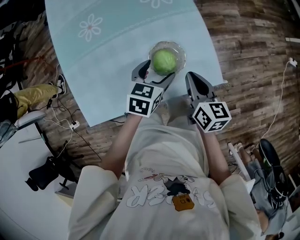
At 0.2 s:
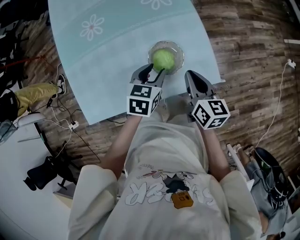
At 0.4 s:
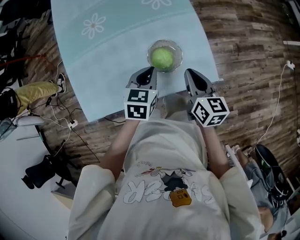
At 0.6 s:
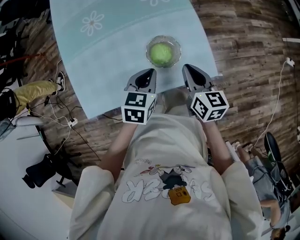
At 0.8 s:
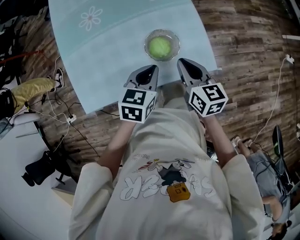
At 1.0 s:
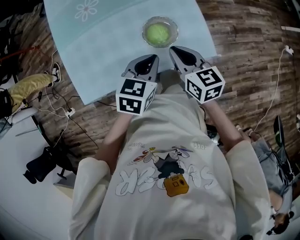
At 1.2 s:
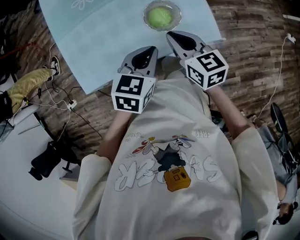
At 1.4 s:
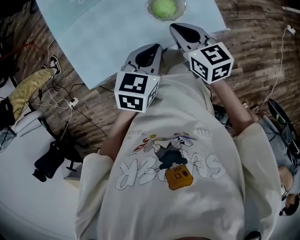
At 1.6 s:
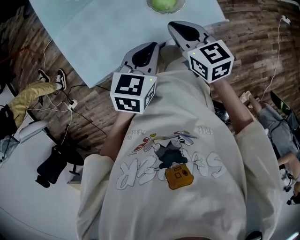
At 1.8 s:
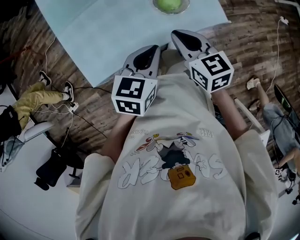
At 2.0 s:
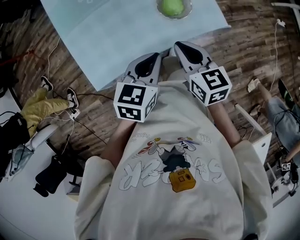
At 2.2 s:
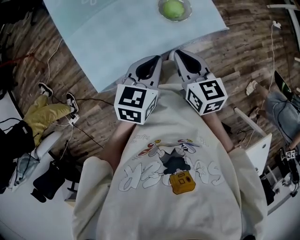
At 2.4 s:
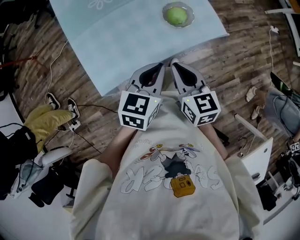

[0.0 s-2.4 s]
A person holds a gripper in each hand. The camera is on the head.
0.0 to 1.2 s: The right gripper shifts by some 10 cm, and rotates about 20 degrees.
1.2 to 2.4 s: The right gripper moves roughly 20 cm.

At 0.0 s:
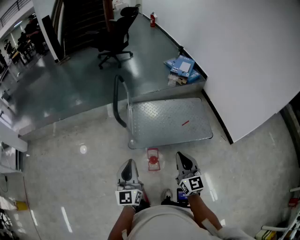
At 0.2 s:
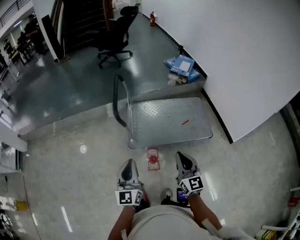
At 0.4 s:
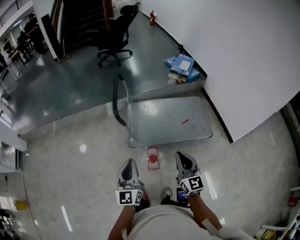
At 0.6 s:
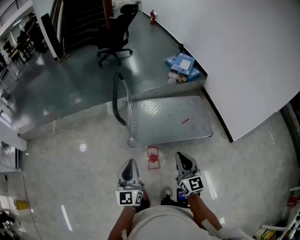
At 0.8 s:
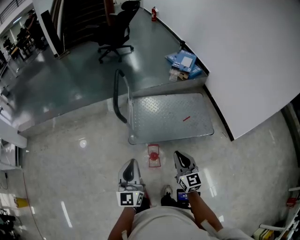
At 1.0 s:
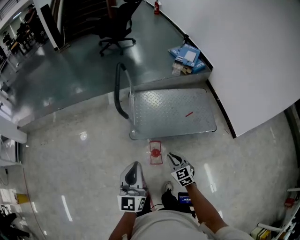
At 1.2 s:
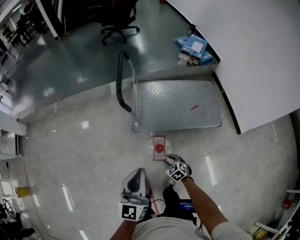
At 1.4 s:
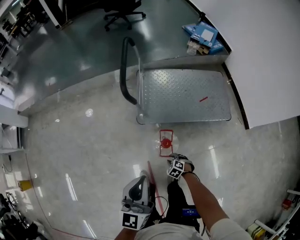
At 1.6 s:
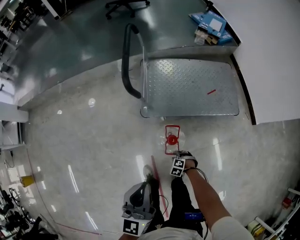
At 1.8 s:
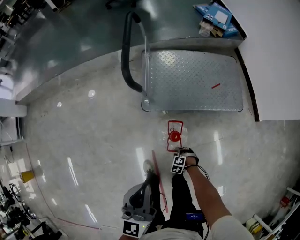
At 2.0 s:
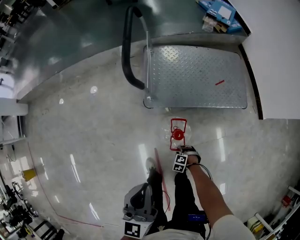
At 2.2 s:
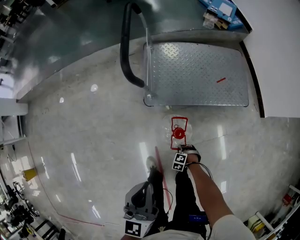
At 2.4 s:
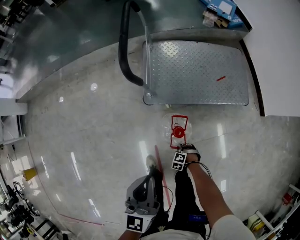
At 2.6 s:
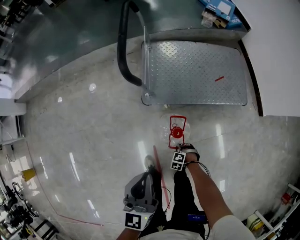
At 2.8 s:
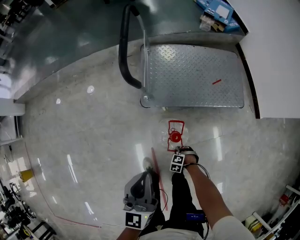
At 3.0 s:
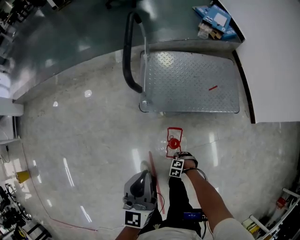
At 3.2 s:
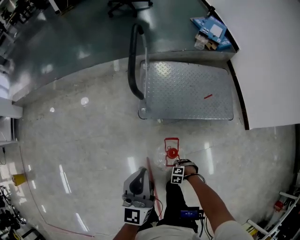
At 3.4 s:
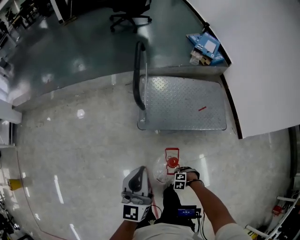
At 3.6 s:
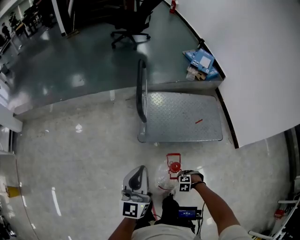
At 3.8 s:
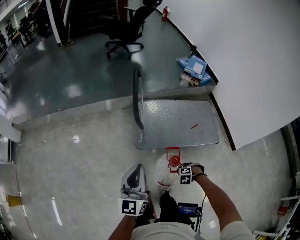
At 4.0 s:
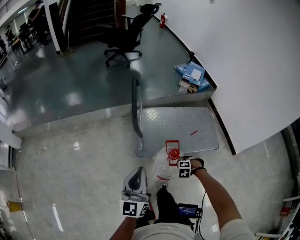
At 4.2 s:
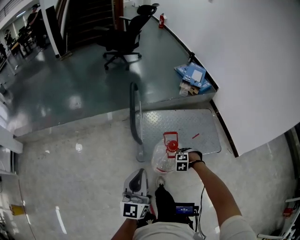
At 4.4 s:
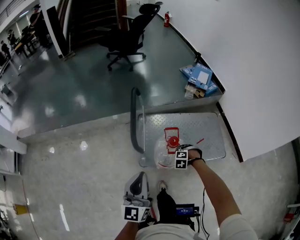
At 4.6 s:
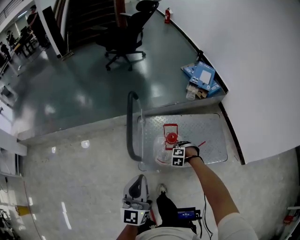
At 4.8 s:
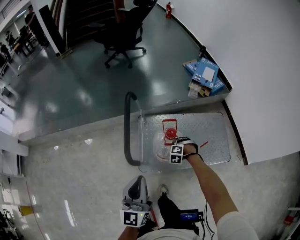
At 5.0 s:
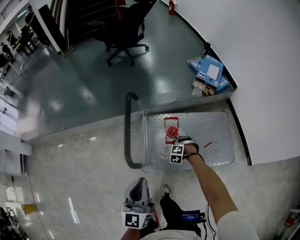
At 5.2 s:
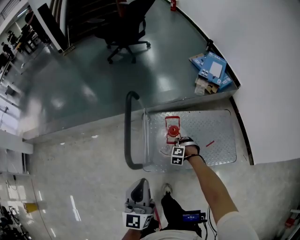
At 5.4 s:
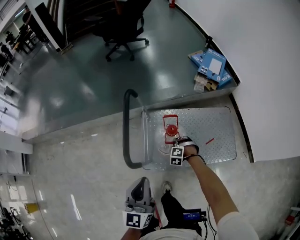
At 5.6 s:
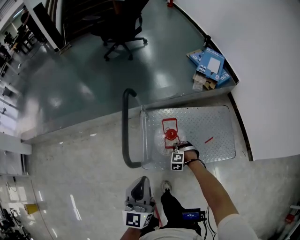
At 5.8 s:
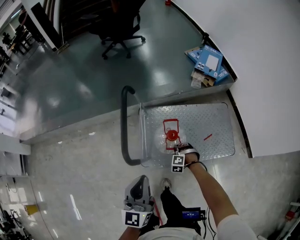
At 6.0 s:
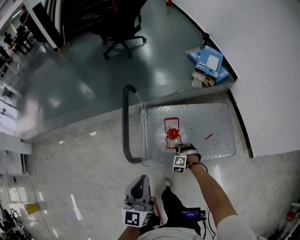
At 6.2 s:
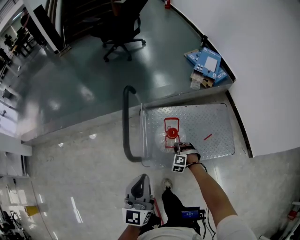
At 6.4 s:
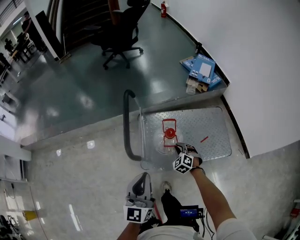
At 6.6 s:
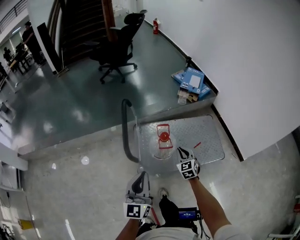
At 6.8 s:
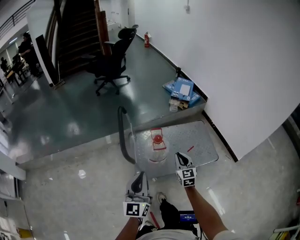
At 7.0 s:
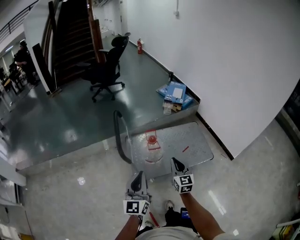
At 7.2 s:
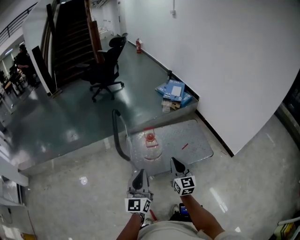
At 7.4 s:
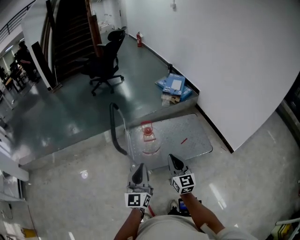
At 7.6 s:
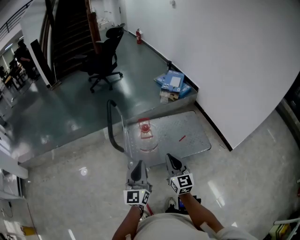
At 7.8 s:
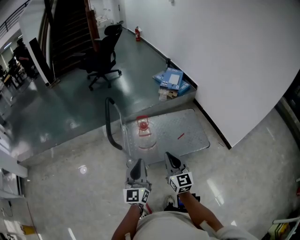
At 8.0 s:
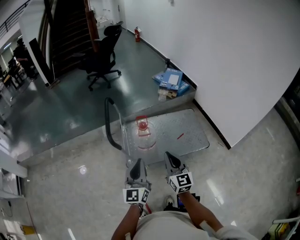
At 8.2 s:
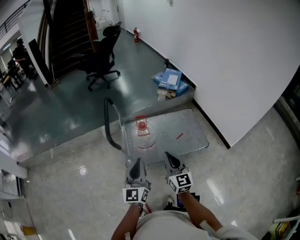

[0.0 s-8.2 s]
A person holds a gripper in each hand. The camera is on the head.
0.0 to 1.6 s: The right gripper travels downward by roughly 50 cm, points its fingers approximately 80 degrees further downward, and opens up, while the left gripper shifts roughly 5 cm downward.
1.6 to 3.2 s: The left gripper goes downward and returns, some 10 cm each way. The right gripper reaches about 10 cm downward, then returns.
3.2 to 5.0 s: The right gripper shifts by approximately 60 cm, and swivels approximately 30 degrees. Meanwhile the left gripper changes place by roughly 30 cm.
5.0 to 6.6 s: The right gripper moves upward and backward, approximately 25 cm, and rotates around the line of its fingers by about 60 degrees, clockwise from behind. The left gripper goes approximately 10 cm backward.
6.6 to 8.2 s: The right gripper is displaced backward and upward by some 30 cm, and changes its angle by approximately 30 degrees. The left gripper moves to the right and backward, about 15 cm.

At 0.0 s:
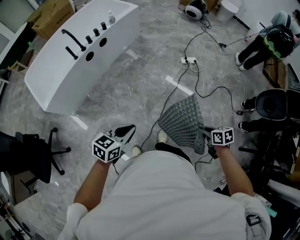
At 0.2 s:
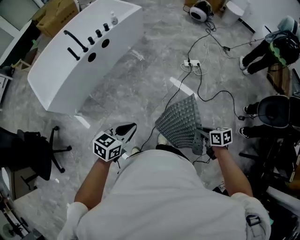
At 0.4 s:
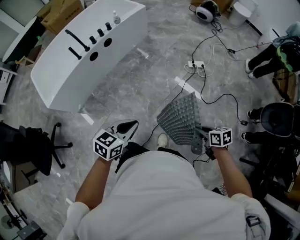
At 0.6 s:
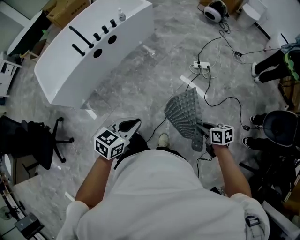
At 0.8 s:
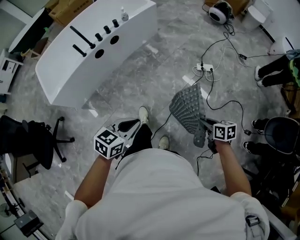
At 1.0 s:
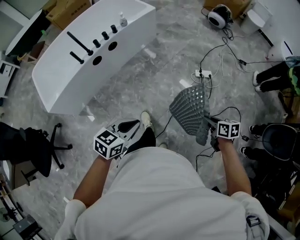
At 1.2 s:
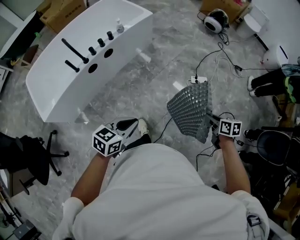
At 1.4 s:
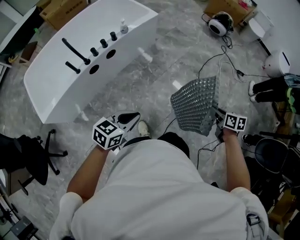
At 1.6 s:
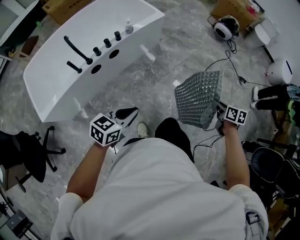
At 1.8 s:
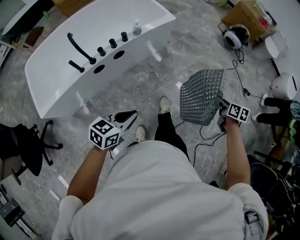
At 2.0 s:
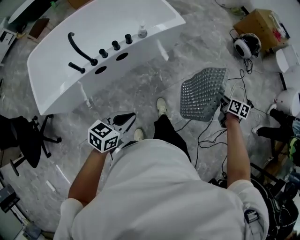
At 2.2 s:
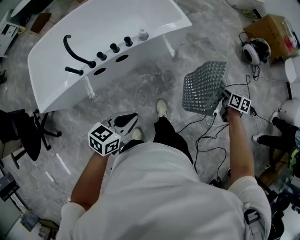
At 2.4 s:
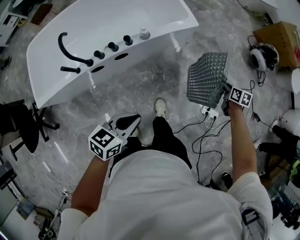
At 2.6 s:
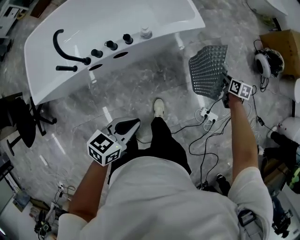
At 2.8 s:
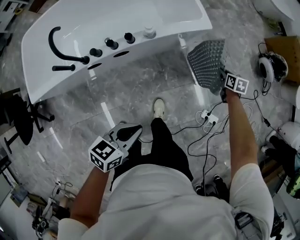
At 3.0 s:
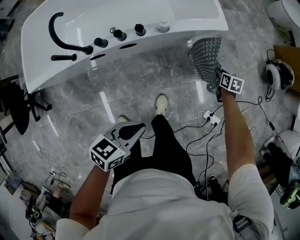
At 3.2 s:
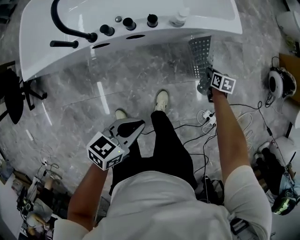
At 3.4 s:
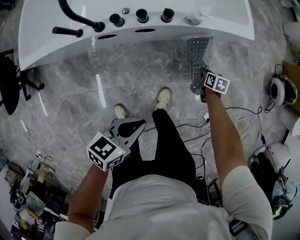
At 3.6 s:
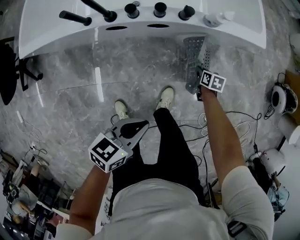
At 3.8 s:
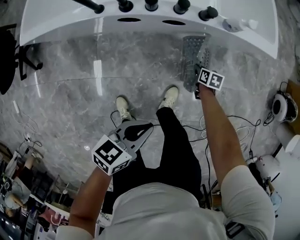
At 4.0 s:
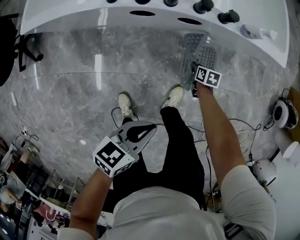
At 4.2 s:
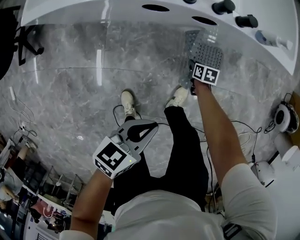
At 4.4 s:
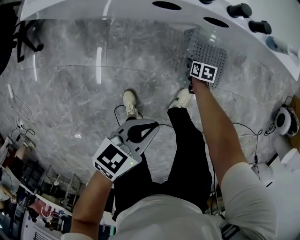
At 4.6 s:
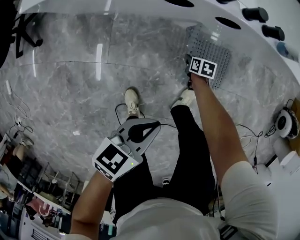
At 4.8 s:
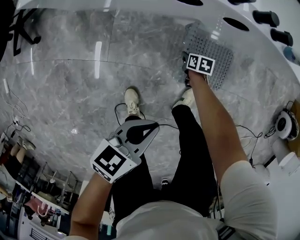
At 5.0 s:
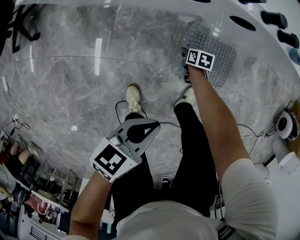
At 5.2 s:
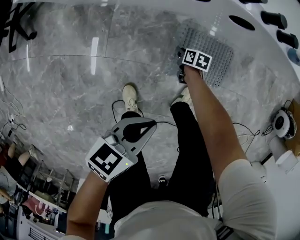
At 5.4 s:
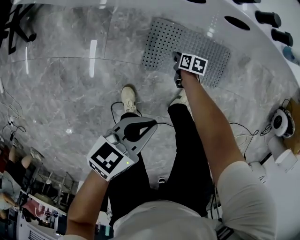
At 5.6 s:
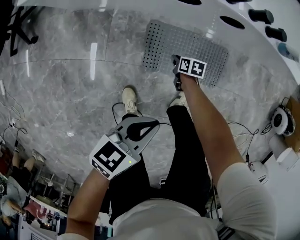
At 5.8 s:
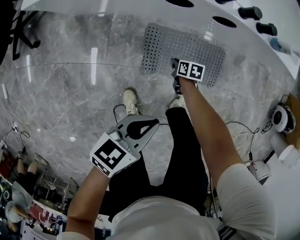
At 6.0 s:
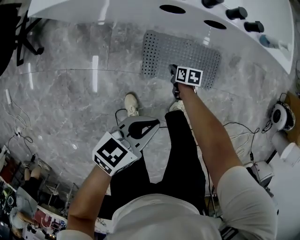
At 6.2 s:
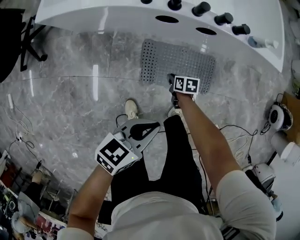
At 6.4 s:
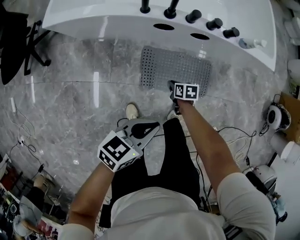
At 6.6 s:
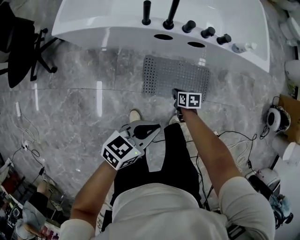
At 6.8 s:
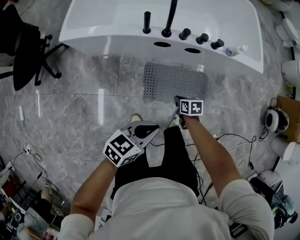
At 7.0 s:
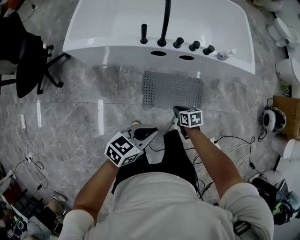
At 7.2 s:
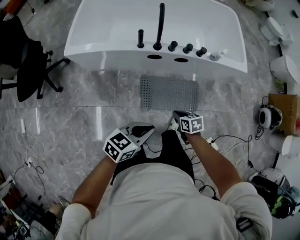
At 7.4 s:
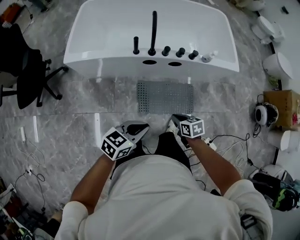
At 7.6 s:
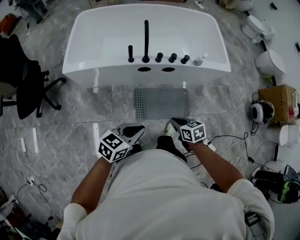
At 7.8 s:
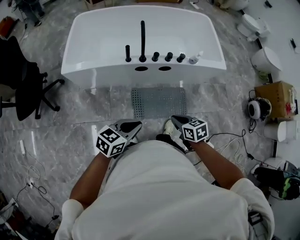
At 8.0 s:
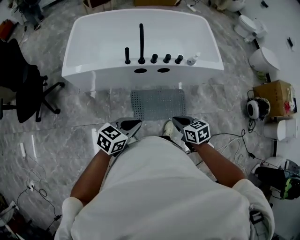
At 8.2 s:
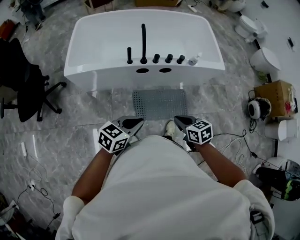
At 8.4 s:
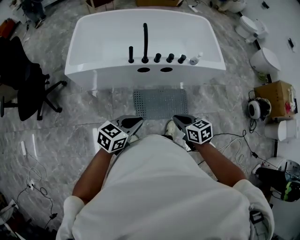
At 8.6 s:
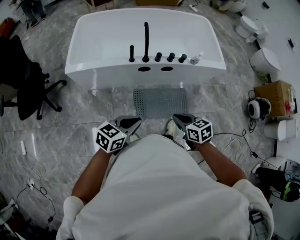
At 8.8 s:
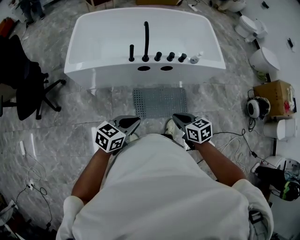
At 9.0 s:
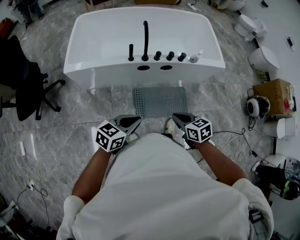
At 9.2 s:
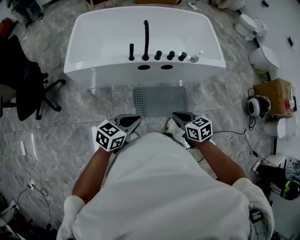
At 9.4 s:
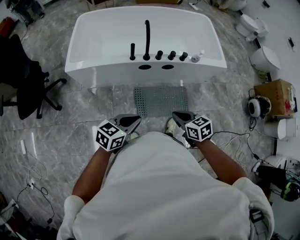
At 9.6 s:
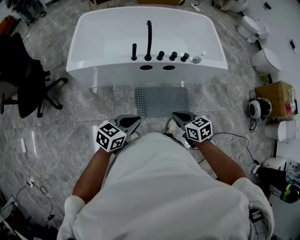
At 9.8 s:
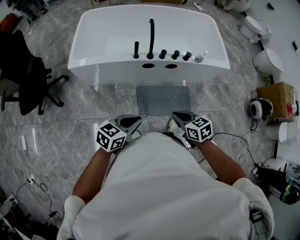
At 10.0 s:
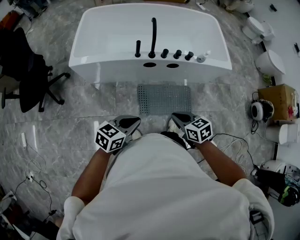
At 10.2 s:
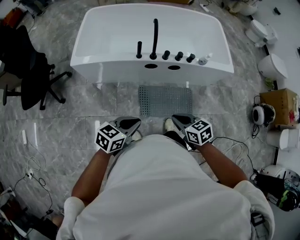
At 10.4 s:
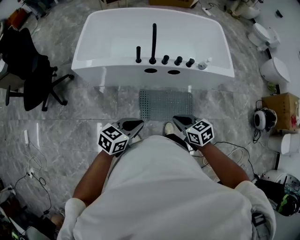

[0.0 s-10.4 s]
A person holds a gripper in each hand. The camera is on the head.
0.0 to 1.4 s: Both grippers move forward, roughly 40 cm.
1.4 to 3.0 s: The right gripper travels forward and downward by some 70 cm, and rotates approximately 30 degrees, while the left gripper shifts about 35 cm forward, and changes its angle by roughly 40 degrees.
3.0 to 4.4 s: The left gripper shifts by roughly 25 cm, and turns by about 20 degrees; the right gripper ends up roughly 50 cm from where it was, and changes its angle by about 30 degrees.
4.4 to 6.0 s: The right gripper travels to the left and backward by about 10 cm. Meanwhile the left gripper travels downward and back again, roughly 5 cm each way.
6.0 to 7.4 s: The right gripper moves upward, roughly 35 cm. The left gripper goes some 20 cm upward.
7.4 to 9.0 s: The right gripper goes about 15 cm upward; the left gripper ends up about 5 cm from where it was.
9.0 to 10.4 s: There are only small adjustments of the grippers.

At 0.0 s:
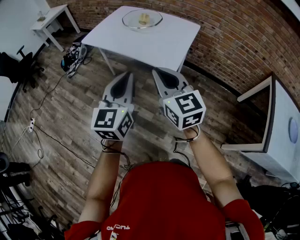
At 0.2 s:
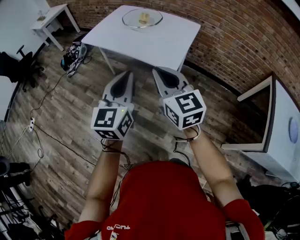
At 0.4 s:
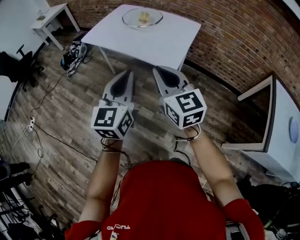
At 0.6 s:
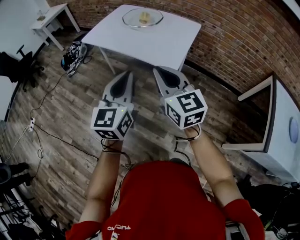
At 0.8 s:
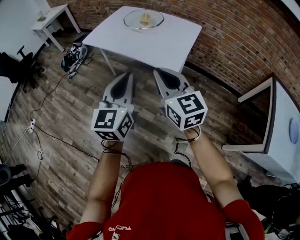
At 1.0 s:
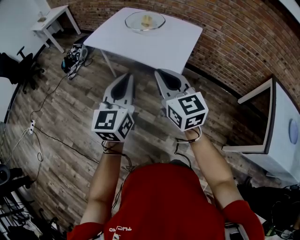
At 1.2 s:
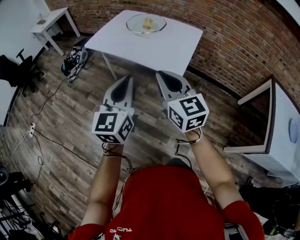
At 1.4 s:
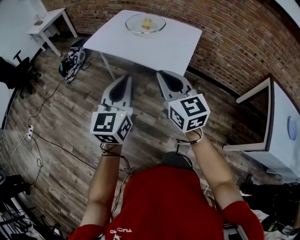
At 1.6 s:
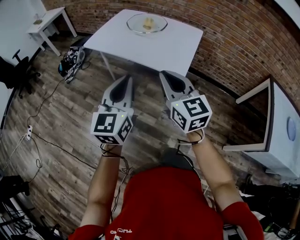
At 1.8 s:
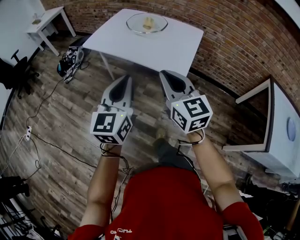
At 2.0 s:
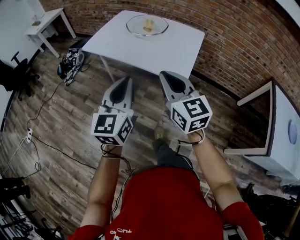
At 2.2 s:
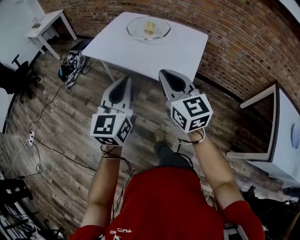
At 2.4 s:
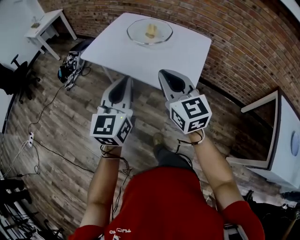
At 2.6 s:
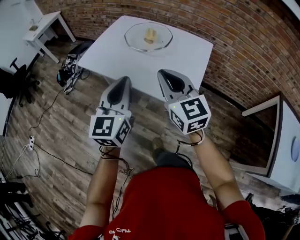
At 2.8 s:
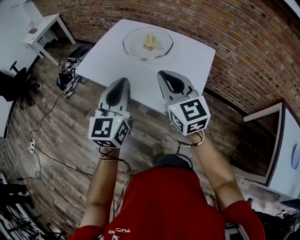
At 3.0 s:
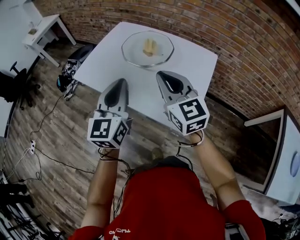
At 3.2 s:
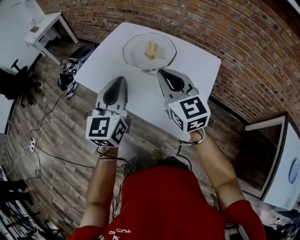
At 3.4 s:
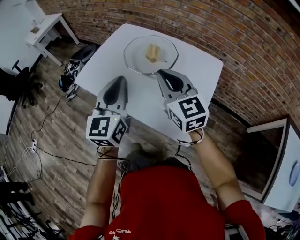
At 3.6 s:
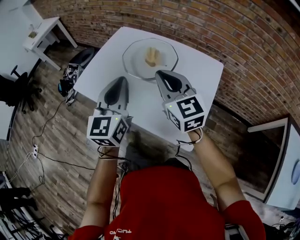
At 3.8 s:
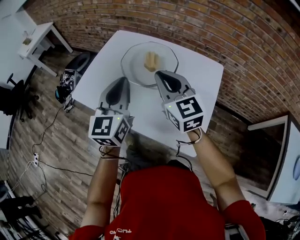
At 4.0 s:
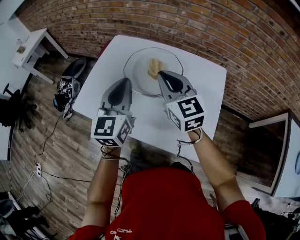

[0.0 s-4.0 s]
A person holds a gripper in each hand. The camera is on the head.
0.0 to 1.4 s: The left gripper heads to the left, covering about 5 cm.
1.4 to 2.6 s: Both grippers move forward, roughly 20 cm.
2.6 to 4.0 s: The two grippers go roughly 30 cm forward.
